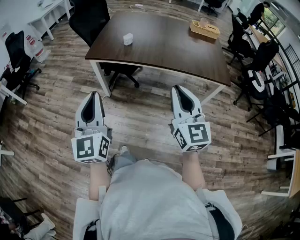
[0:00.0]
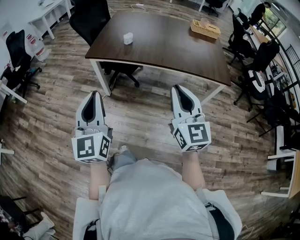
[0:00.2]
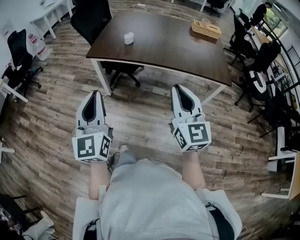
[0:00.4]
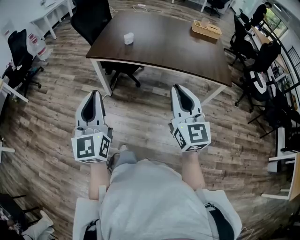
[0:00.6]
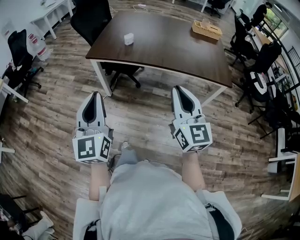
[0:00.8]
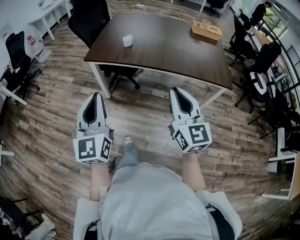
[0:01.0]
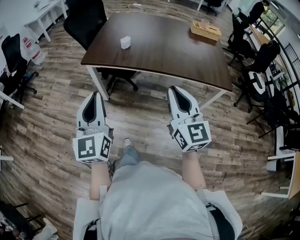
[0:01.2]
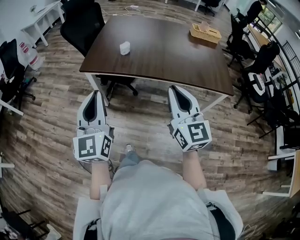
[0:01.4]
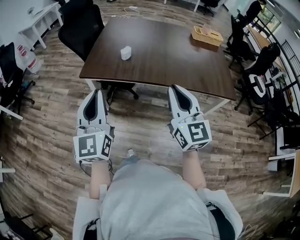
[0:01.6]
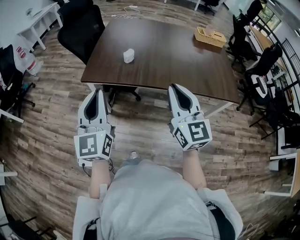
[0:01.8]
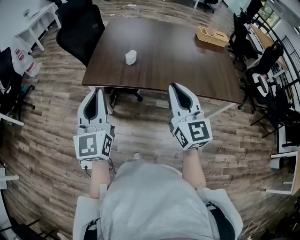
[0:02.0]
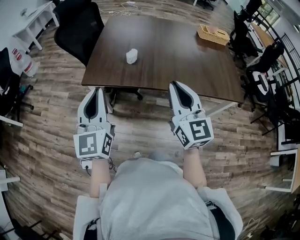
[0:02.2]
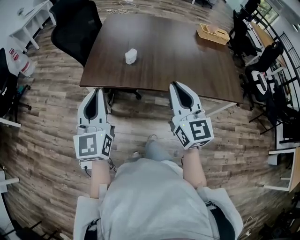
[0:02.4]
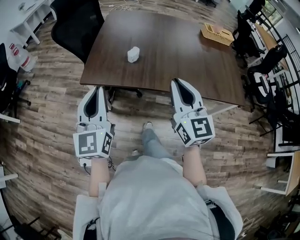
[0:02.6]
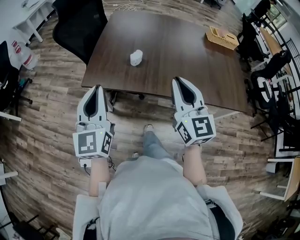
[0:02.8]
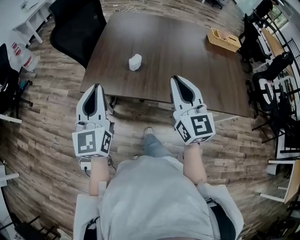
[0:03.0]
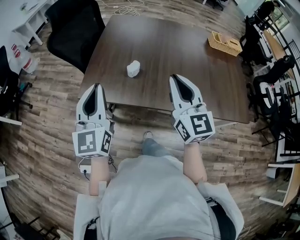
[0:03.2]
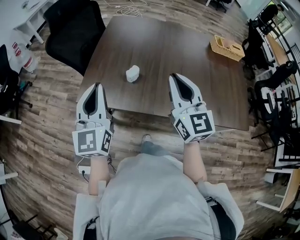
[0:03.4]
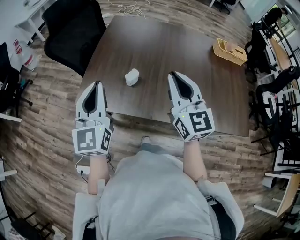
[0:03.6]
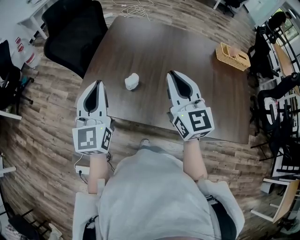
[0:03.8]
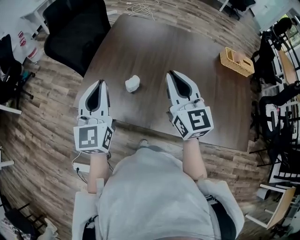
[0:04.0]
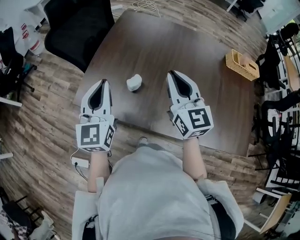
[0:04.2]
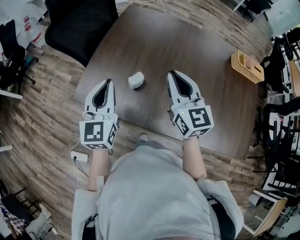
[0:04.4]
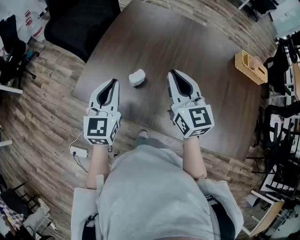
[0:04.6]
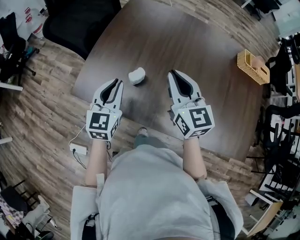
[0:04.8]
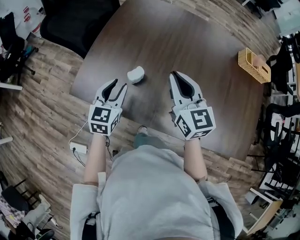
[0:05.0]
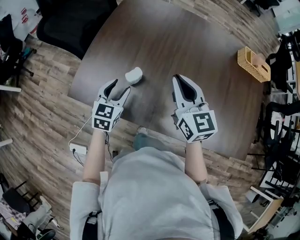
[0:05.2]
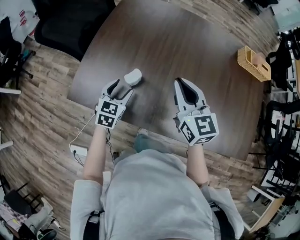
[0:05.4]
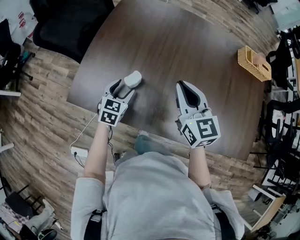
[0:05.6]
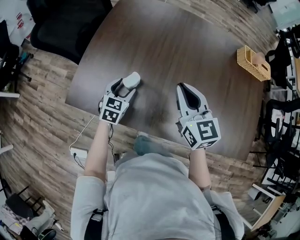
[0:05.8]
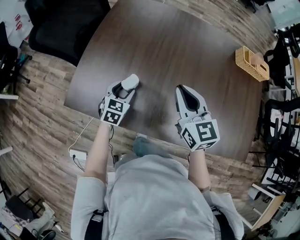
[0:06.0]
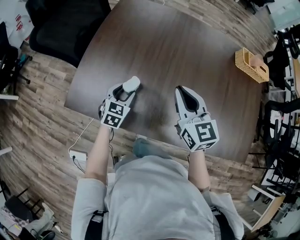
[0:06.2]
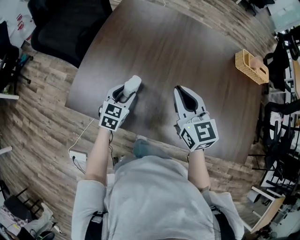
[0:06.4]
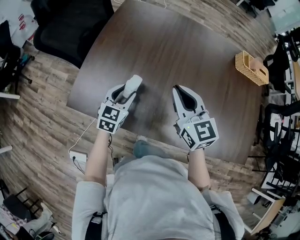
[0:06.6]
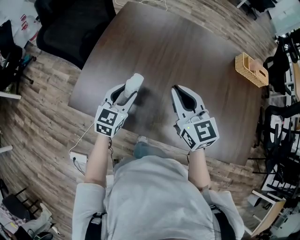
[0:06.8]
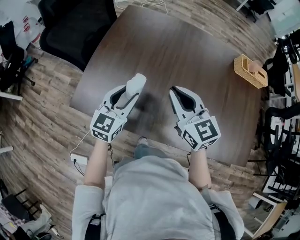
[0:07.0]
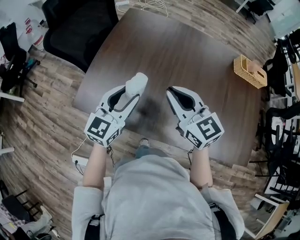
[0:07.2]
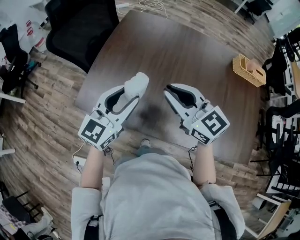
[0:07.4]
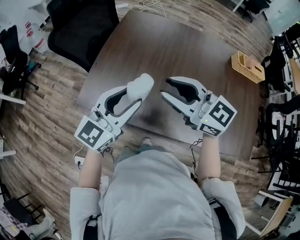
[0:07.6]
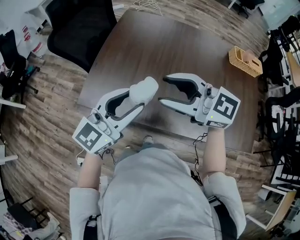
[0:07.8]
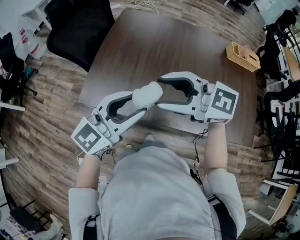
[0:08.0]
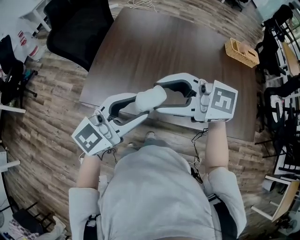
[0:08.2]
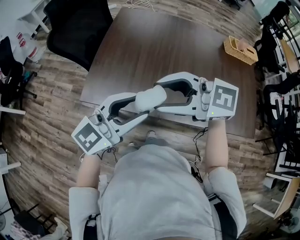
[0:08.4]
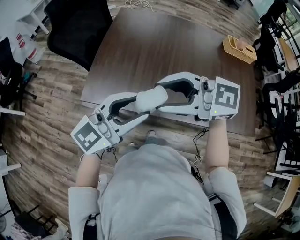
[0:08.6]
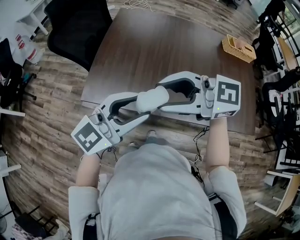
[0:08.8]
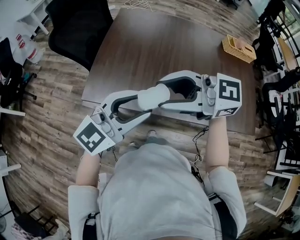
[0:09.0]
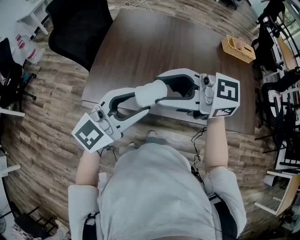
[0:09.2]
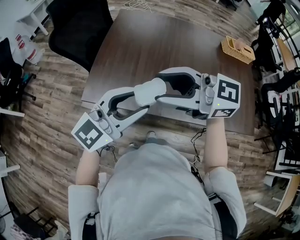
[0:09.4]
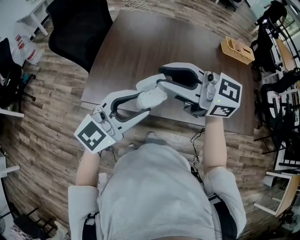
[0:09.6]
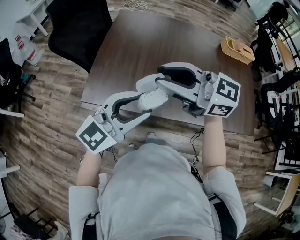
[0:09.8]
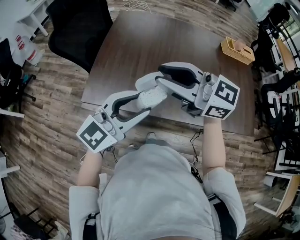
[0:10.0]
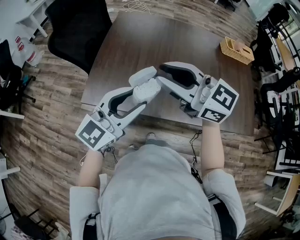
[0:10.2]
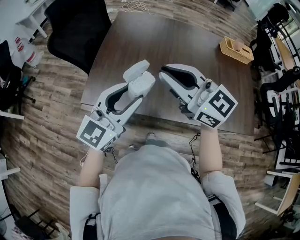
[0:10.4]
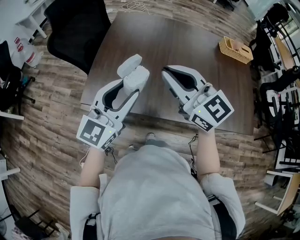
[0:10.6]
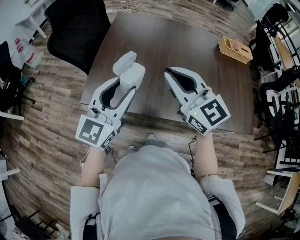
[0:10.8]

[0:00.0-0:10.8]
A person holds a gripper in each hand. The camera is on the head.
0:00.0 to 0:01.6: Both grippers travel together forward, roughly 20 cm.
0:01.6 to 0:03.0: Both grippers move forward, approximately 20 cm.
0:03.0 to 0:04.6: The right gripper heads forward, covering approximately 25 cm; the left gripper goes approximately 25 cm forward, downward and to the right.
0:04.6 to 0:06.2: The right gripper is displaced downward by about 5 cm. The left gripper moves downward, approximately 20 cm, swivels approximately 30 degrees, and opens its fingers.
0:06.2 to 0:07.8: The left gripper moves upward and backward, about 30 cm, and tilts its fingers approximately 40 degrees upward, while the right gripper moves upward, to the left and backward, approximately 20 cm, turns by about 50 degrees, and opens up.
0:07.8 to 0:09.2: The right gripper changes place by approximately 10 cm. The left gripper moves about 5 cm.
0:09.2 to 0:10.8: The left gripper moves approximately 5 cm, and swivels approximately 20 degrees, while the right gripper changes place by some 10 cm, rotates roughly 50 degrees, and closes.

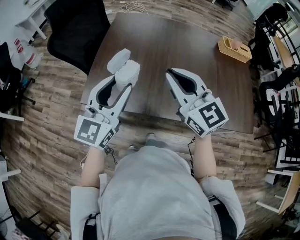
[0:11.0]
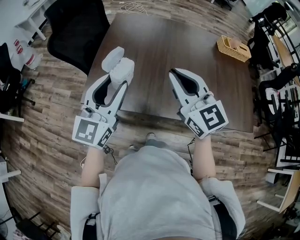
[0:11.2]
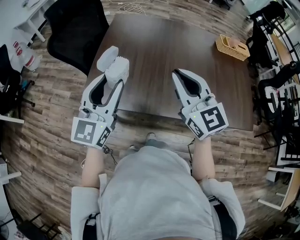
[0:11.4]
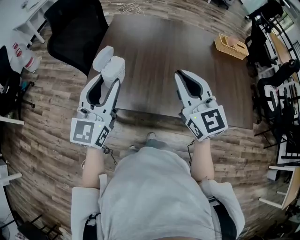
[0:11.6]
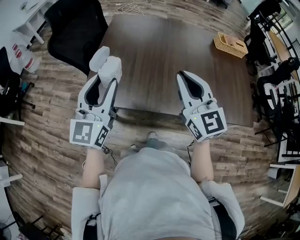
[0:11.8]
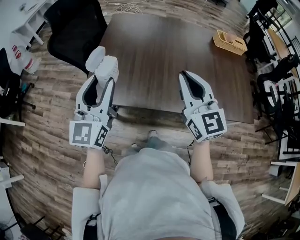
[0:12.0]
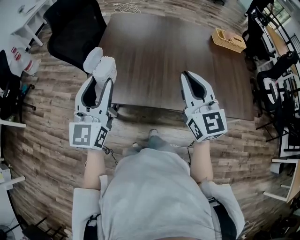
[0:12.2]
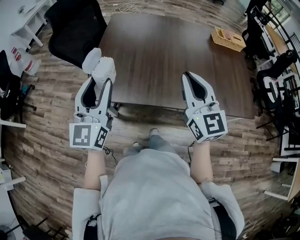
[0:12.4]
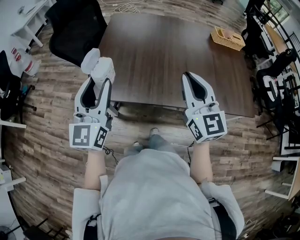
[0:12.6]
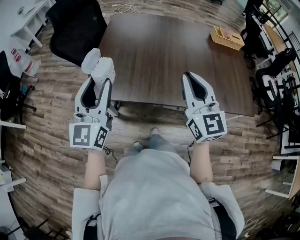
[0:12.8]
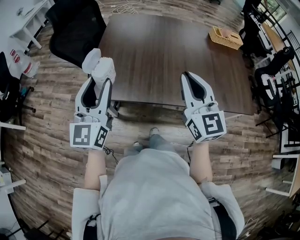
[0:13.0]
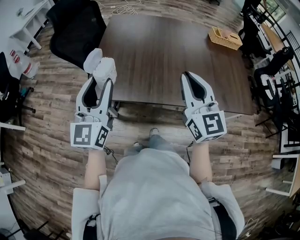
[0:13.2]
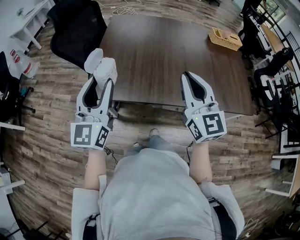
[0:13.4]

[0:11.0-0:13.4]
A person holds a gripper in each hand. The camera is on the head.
0:11.0 to 0:12.2: The left gripper is displaced to the left by roughly 5 cm. The right gripper travels backward by some 5 cm, and turns by some 20 degrees.
0:12.2 to 0:13.4: The grippers move only a little.

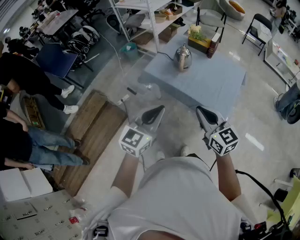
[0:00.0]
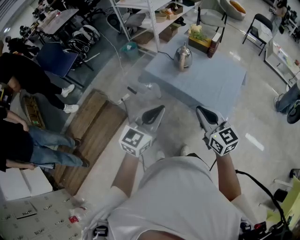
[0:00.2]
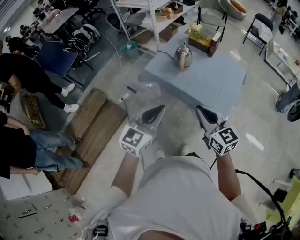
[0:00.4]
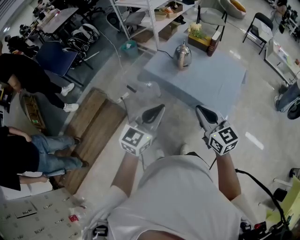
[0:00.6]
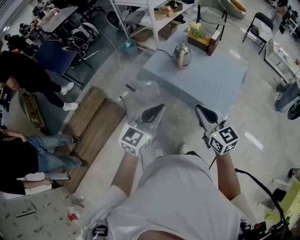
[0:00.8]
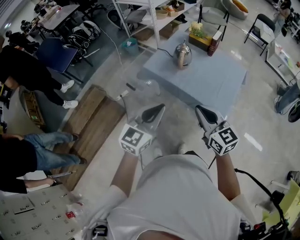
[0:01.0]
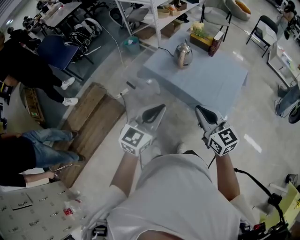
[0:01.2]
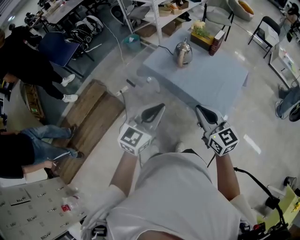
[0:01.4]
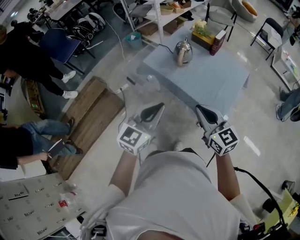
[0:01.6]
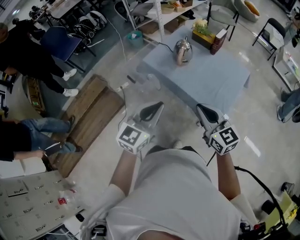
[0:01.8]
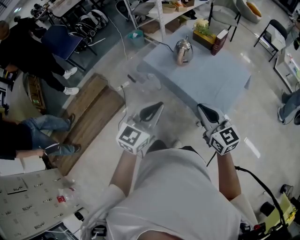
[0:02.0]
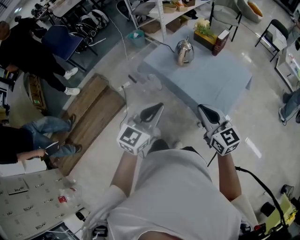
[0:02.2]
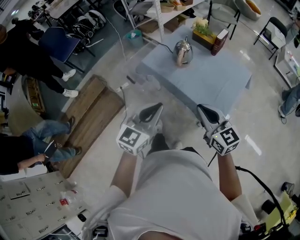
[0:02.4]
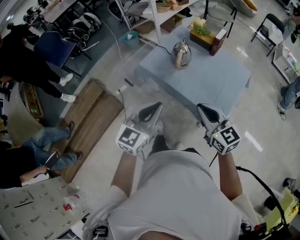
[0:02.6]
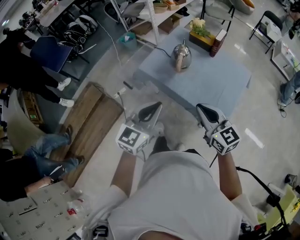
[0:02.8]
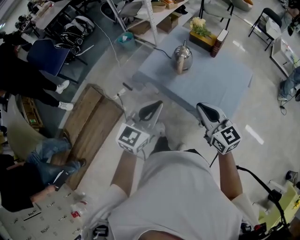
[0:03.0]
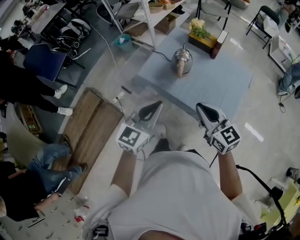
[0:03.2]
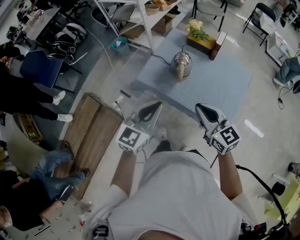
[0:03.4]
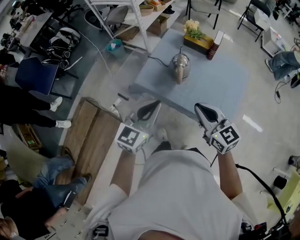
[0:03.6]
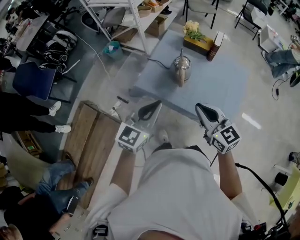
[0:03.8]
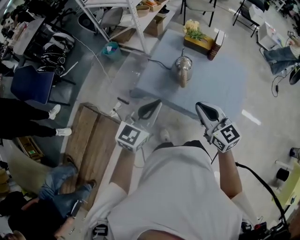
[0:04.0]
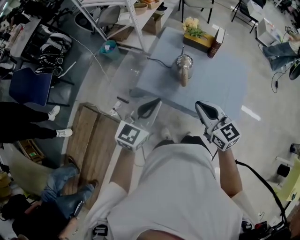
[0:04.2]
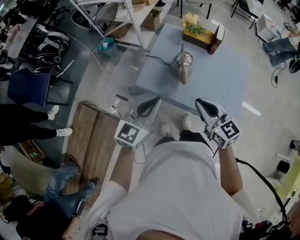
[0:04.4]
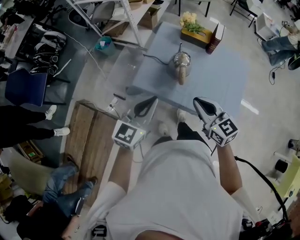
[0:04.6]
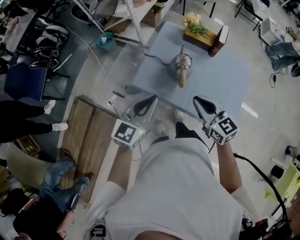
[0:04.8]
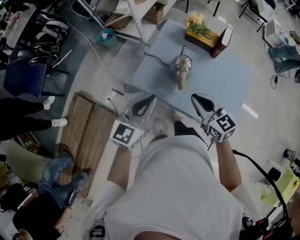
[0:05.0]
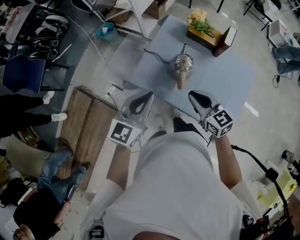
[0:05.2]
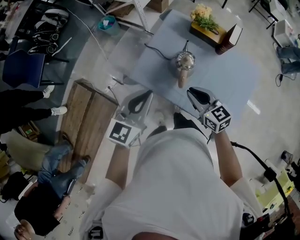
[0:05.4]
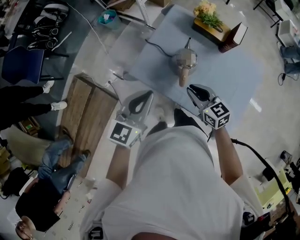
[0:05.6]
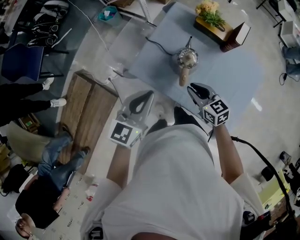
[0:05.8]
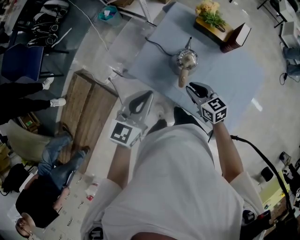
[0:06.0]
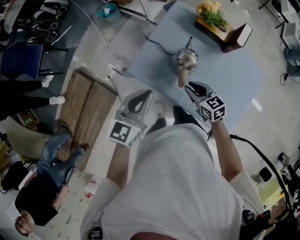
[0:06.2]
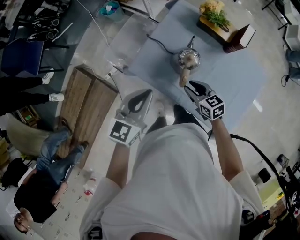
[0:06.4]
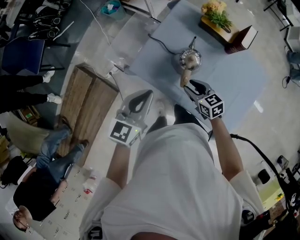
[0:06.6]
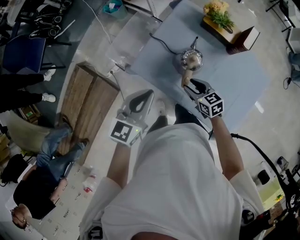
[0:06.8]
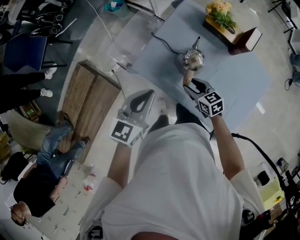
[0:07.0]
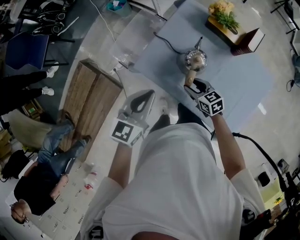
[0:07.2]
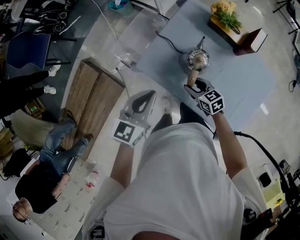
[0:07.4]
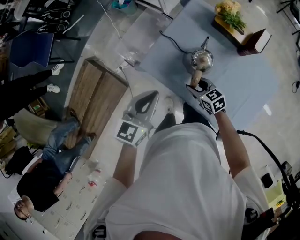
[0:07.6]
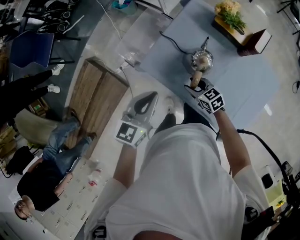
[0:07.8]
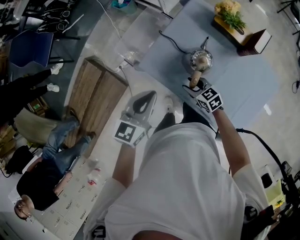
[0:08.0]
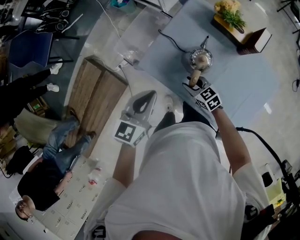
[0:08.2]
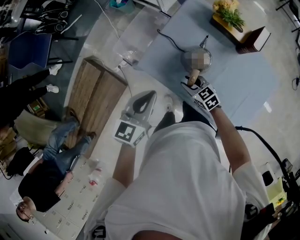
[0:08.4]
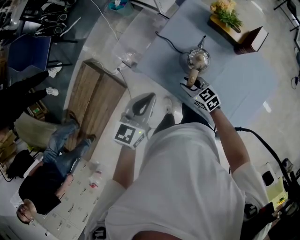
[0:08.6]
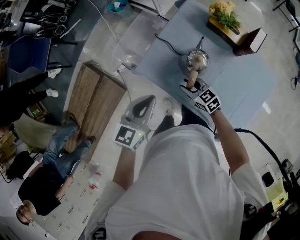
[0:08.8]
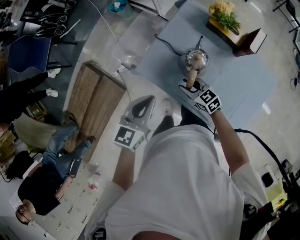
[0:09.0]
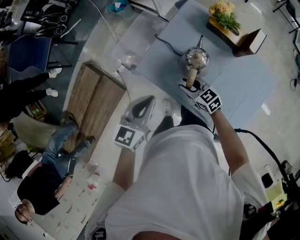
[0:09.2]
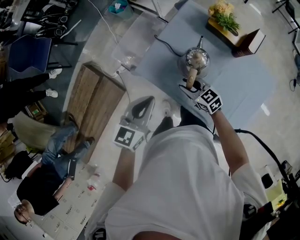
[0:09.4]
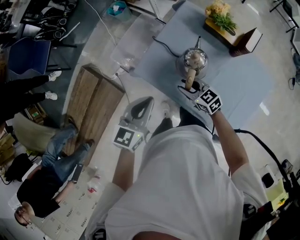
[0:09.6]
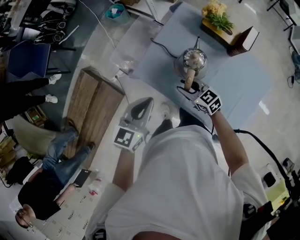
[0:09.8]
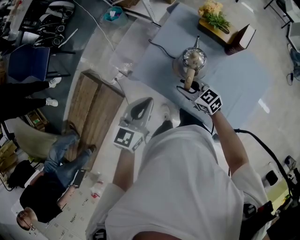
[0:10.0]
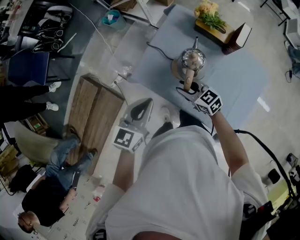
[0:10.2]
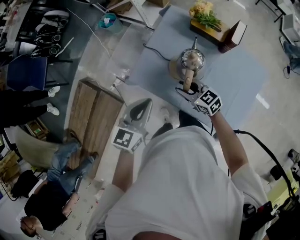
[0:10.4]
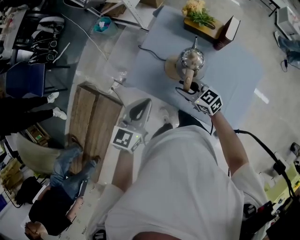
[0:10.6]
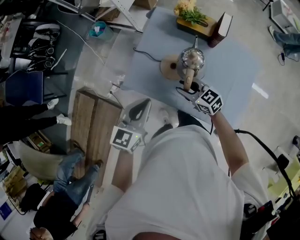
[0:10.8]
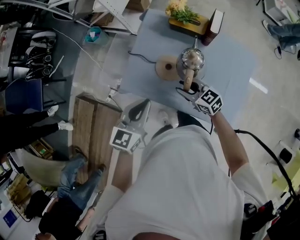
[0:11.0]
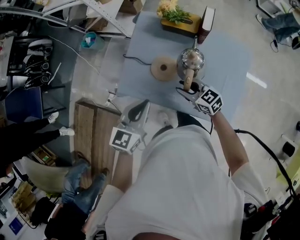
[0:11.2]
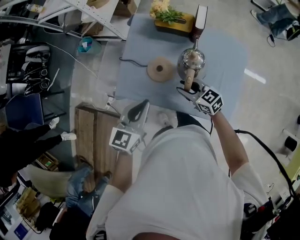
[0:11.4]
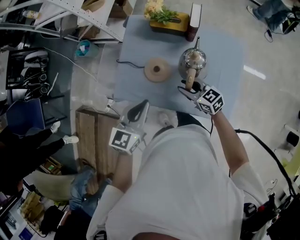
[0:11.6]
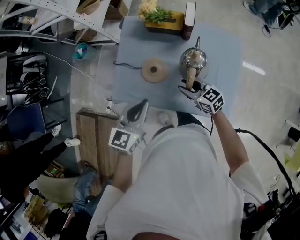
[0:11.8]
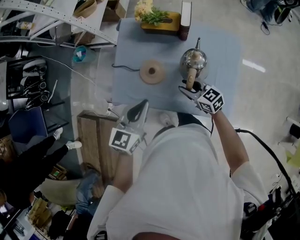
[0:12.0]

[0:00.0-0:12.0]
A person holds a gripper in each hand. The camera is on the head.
0:00.0 to 0:01.6: The two grippers go approximately 5 cm to the right.
0:01.6 to 0:03.0: The two grippers go roughly 15 cm forward.
0:03.0 to 0:04.4: The grippers both shift forward and to the left by roughly 20 cm.
0:04.4 to 0:06.0: The right gripper is displaced downward and forward by some 25 cm, and rotates approximately 20 degrees. Meanwhile the left gripper goes roughly 15 cm forward and downward.
0:06.0 to 0:07.6: The right gripper moves downward, approximately 10 cm, and opens up.
0:07.6 to 0:09.0: The grippers make only small movements.
0:09.0 to 0:10.4: The right gripper goes some 5 cm upward.
0:10.4 to 0:12.0: Both grippers move to the right, approximately 15 cm. The right gripper rotates roughly 20 degrees.
